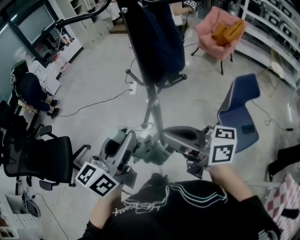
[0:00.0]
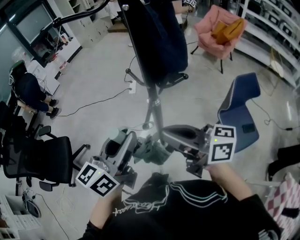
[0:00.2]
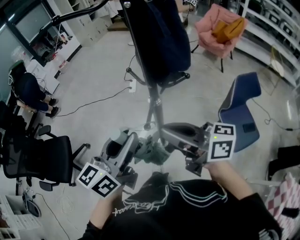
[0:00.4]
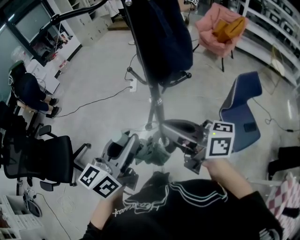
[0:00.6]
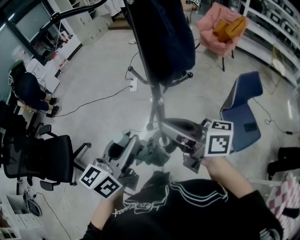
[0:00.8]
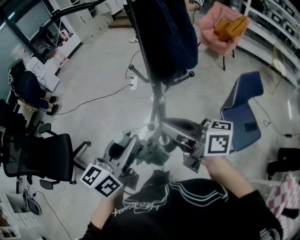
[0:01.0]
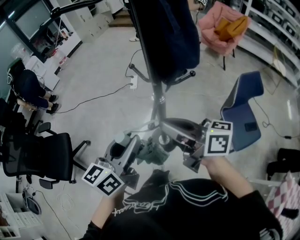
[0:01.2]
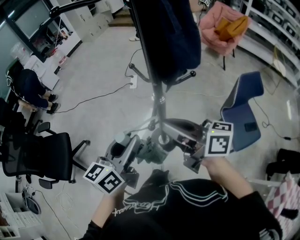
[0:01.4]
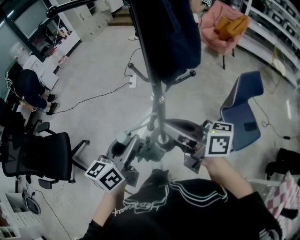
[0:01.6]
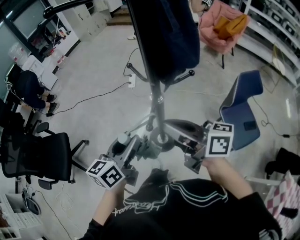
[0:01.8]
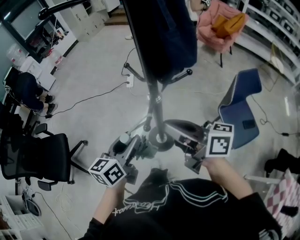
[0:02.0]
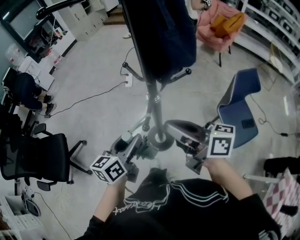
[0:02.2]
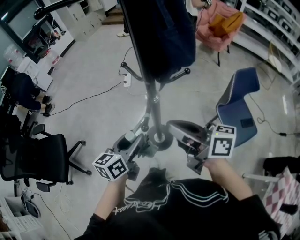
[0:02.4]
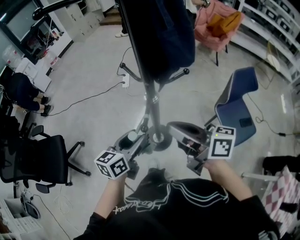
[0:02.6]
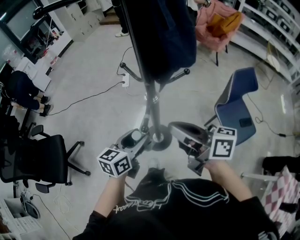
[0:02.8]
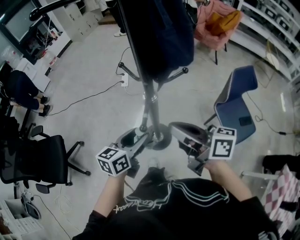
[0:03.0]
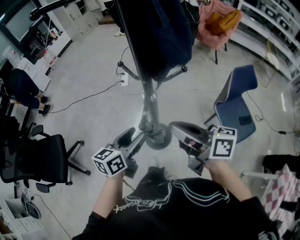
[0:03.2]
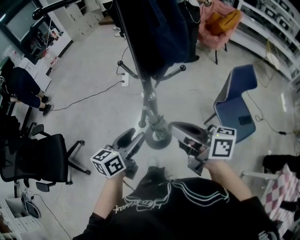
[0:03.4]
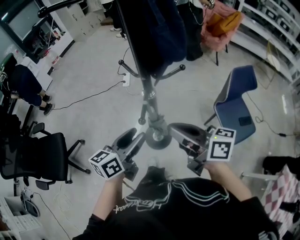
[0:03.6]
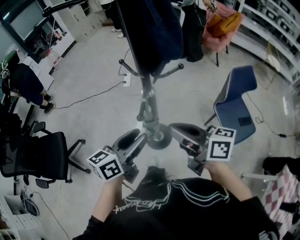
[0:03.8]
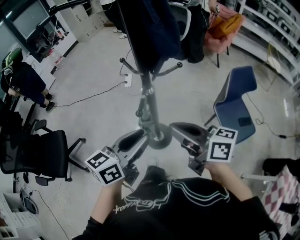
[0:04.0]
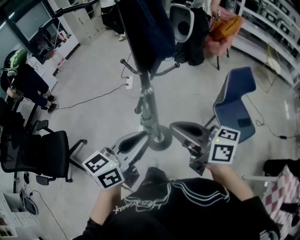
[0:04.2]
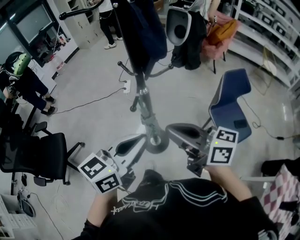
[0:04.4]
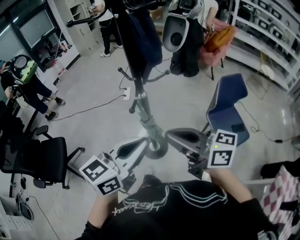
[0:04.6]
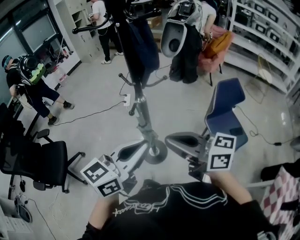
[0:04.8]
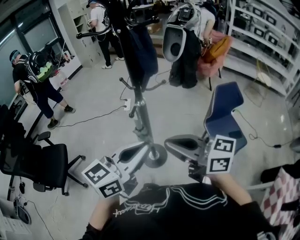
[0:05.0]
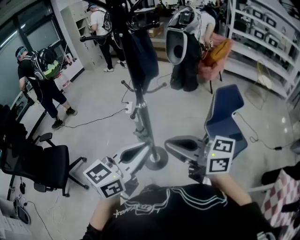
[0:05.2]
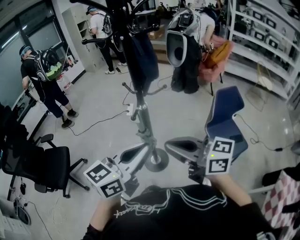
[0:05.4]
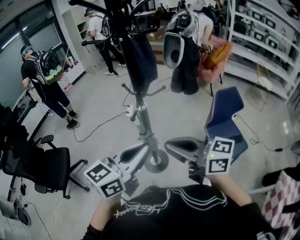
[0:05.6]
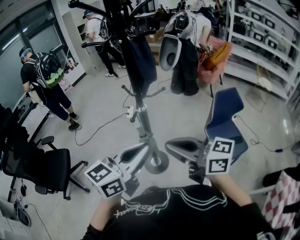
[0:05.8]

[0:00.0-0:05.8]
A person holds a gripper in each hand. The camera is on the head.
0:00.0 to 0:01.4: The right gripper moves roughly 5 cm. Meanwhile the left gripper goes roughly 10 cm downward.
0:01.4 to 0:02.8: The left gripper travels downward by roughly 10 cm.
0:02.8 to 0:04.4: The left gripper is displaced upward and backward by approximately 20 cm, and closes its fingers. The right gripper shifts approximately 10 cm backward and upward.
0:04.4 to 0:05.8: The left gripper moves backward and upward, about 10 cm. Meanwhile the right gripper goes roughly 10 cm backward.

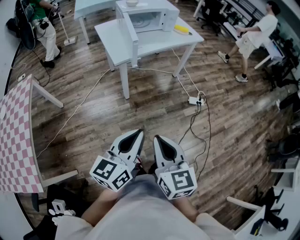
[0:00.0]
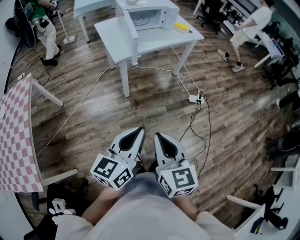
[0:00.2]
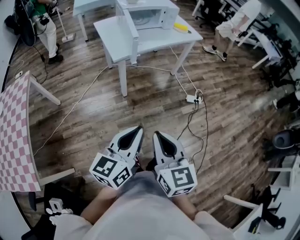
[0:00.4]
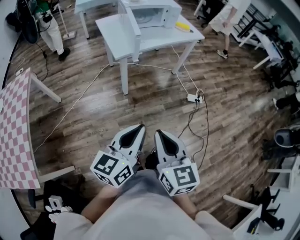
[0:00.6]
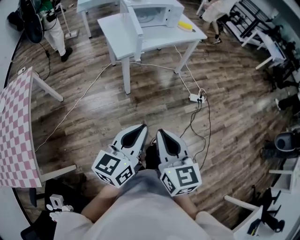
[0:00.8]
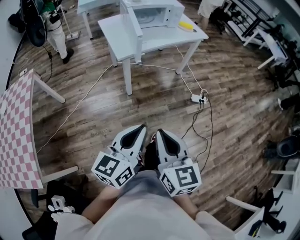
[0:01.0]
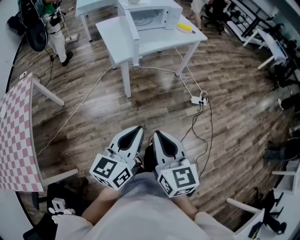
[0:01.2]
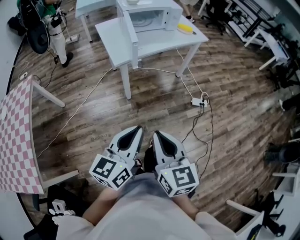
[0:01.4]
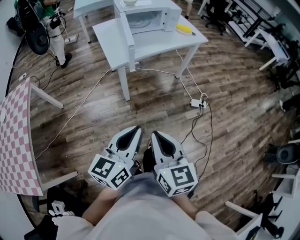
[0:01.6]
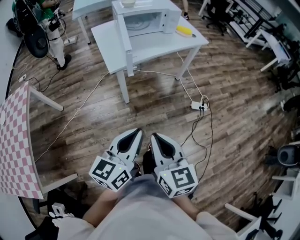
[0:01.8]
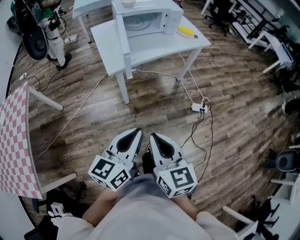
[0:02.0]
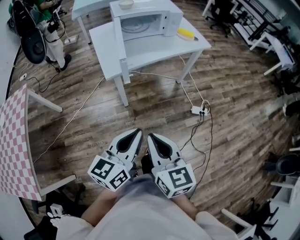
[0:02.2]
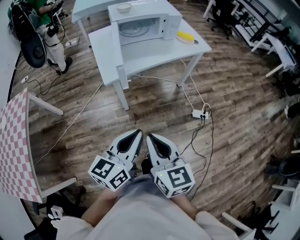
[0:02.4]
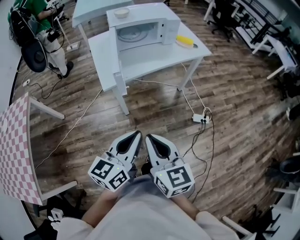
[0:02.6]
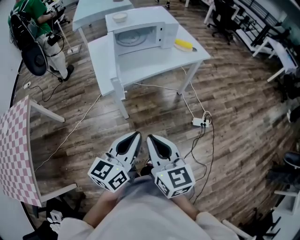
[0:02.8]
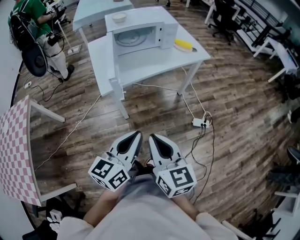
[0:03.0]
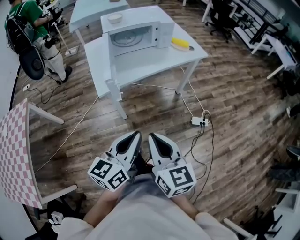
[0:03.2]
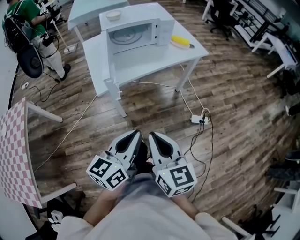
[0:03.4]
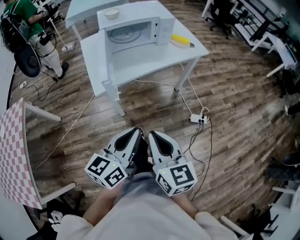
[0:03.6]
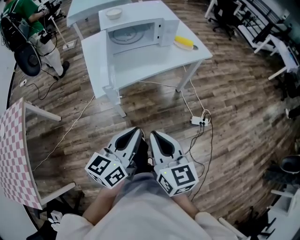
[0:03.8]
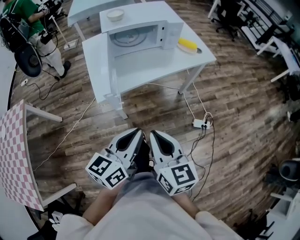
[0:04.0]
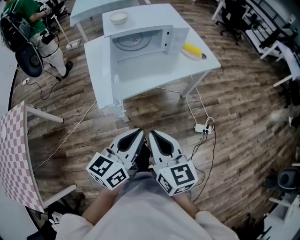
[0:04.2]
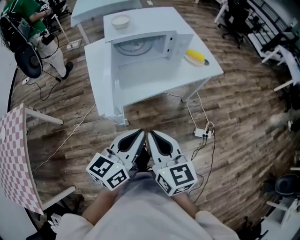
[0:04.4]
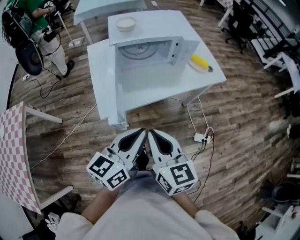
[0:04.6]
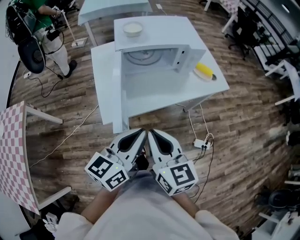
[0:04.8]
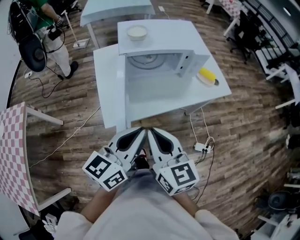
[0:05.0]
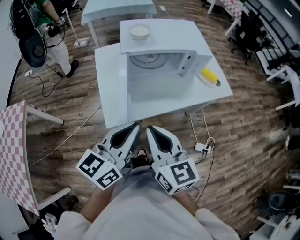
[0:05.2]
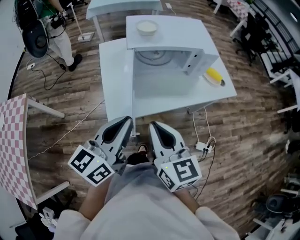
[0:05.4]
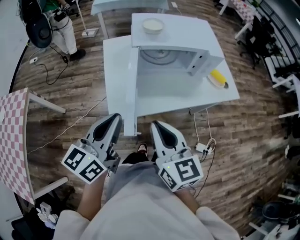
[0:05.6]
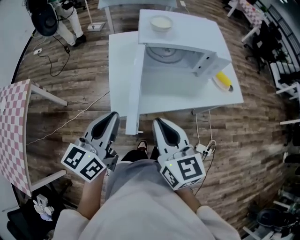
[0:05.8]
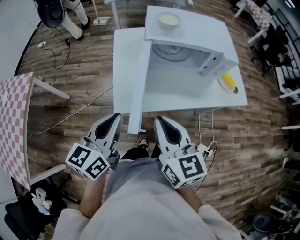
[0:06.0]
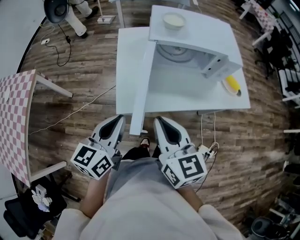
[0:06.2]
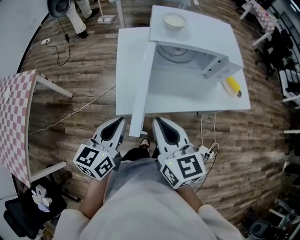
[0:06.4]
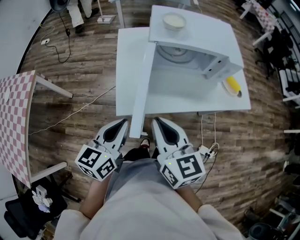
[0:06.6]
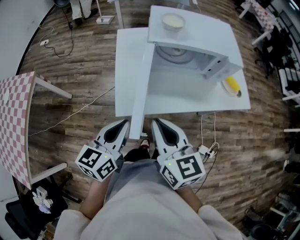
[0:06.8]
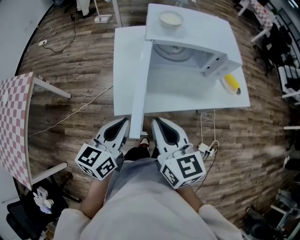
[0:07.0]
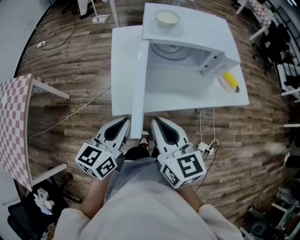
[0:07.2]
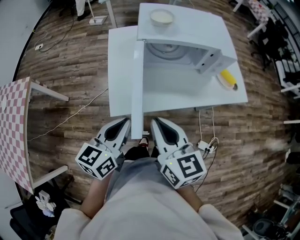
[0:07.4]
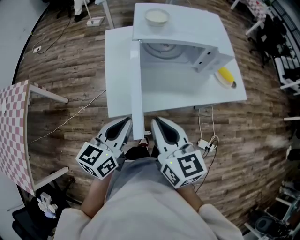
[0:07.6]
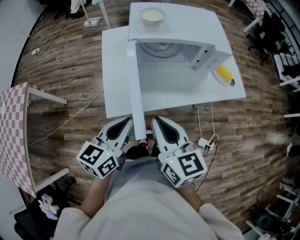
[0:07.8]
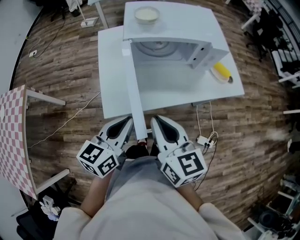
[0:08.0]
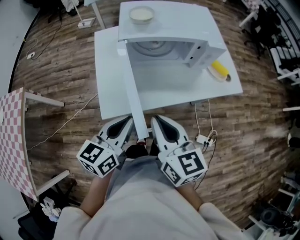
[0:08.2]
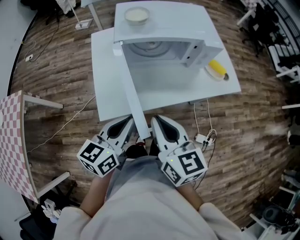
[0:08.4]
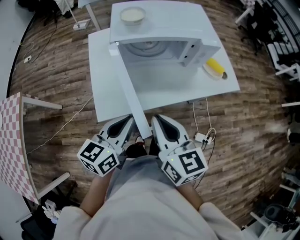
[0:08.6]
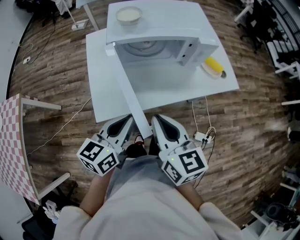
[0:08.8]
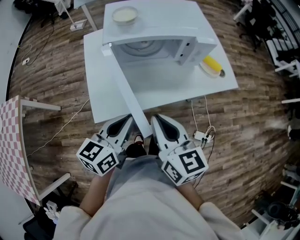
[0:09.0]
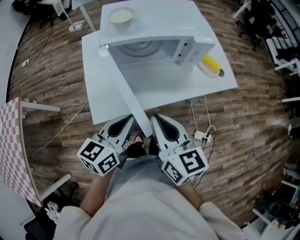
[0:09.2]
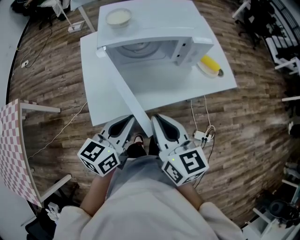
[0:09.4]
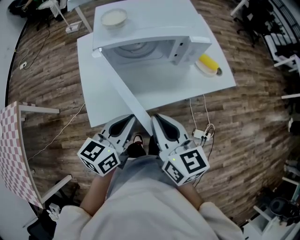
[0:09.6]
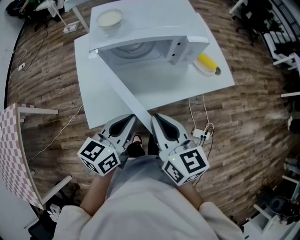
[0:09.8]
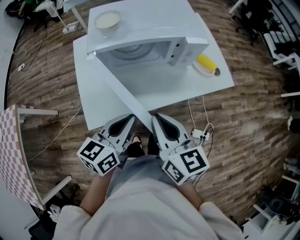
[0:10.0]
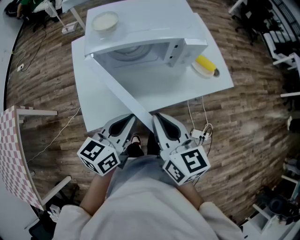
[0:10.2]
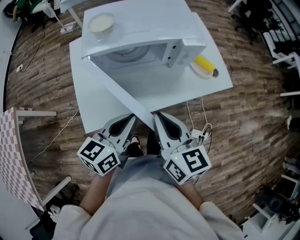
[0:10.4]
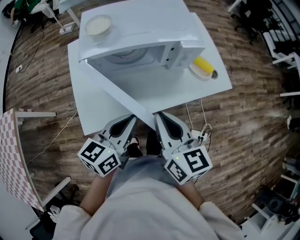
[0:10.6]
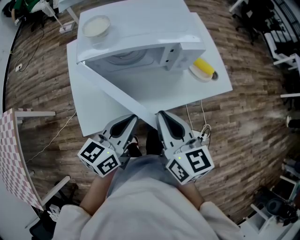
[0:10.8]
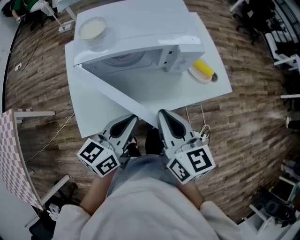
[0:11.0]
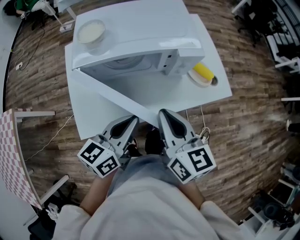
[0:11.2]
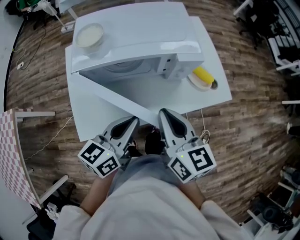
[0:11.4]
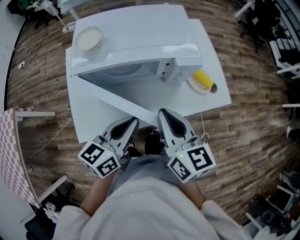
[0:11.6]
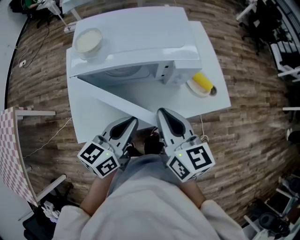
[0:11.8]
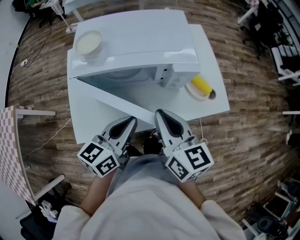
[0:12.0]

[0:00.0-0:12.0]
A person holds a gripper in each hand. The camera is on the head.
0:00.0 to 0:01.6: The grippers both shift forward by roughly 10 cm.
0:01.6 to 0:03.0: Both grippers travel together forward and to the right, some 20 cm.
0:03.0 to 0:04.4: The grippers both shift forward by approximately 20 cm.
0:04.4 to 0:06.0: The right gripper heads forward and to the left, covering roughly 15 cm, while the left gripper moves to the left and forward, about 20 cm, and swivels roughly 20 degrees.
0:06.0 to 0:07.6: The left gripper goes approximately 5 cm to the right.
0:07.6 to 0:09.0: Both grippers travel together to the right, roughly 5 cm.
0:09.0 to 0:10.4: The left gripper goes roughly 10 cm to the right and forward; the right gripper is displaced forward and to the right by some 10 cm.
0:10.4 to 0:12.0: The left gripper moves forward, roughly 10 cm. The right gripper moves forward and to the right, roughly 10 cm.

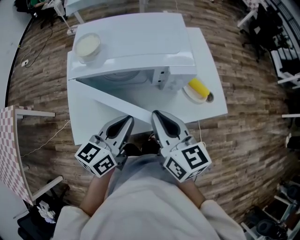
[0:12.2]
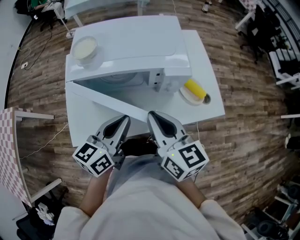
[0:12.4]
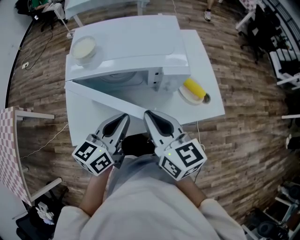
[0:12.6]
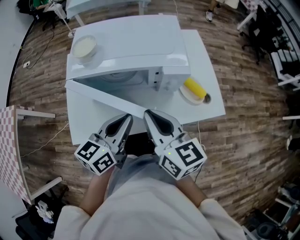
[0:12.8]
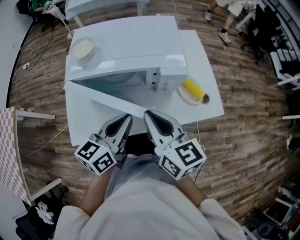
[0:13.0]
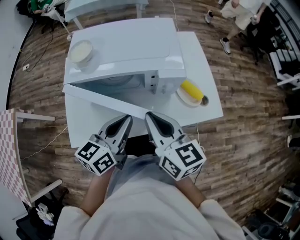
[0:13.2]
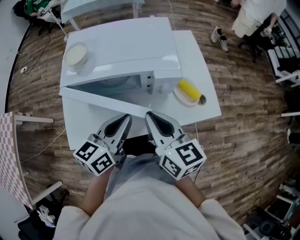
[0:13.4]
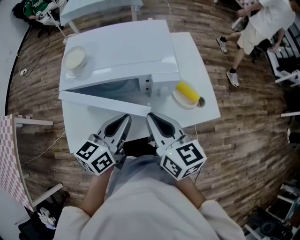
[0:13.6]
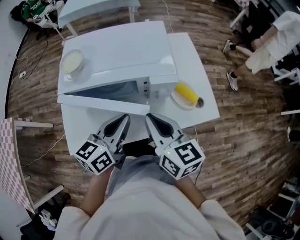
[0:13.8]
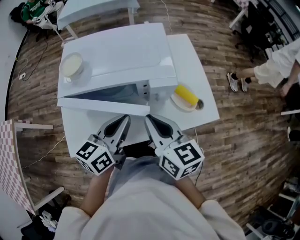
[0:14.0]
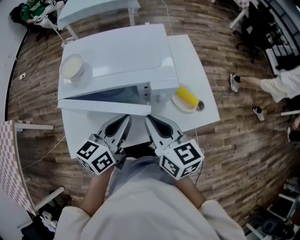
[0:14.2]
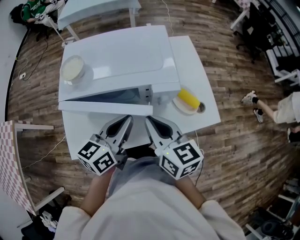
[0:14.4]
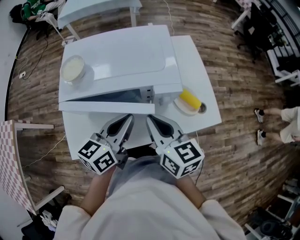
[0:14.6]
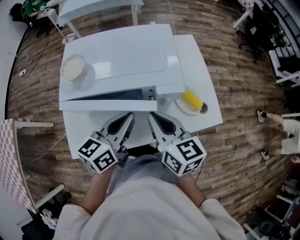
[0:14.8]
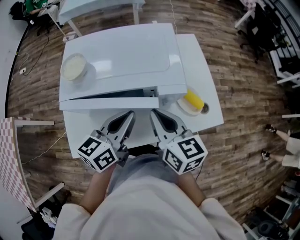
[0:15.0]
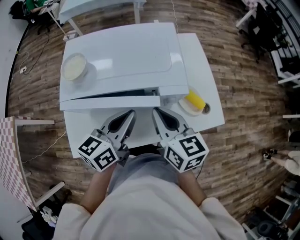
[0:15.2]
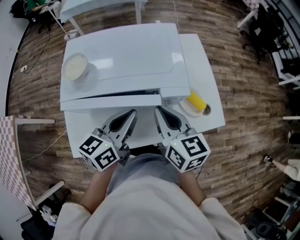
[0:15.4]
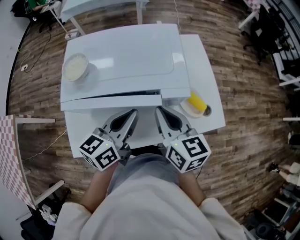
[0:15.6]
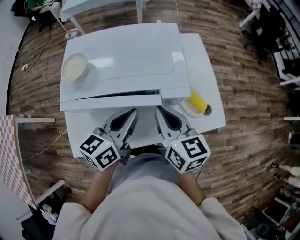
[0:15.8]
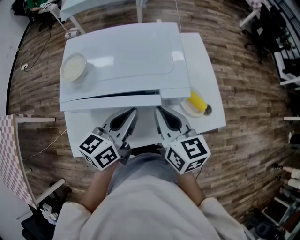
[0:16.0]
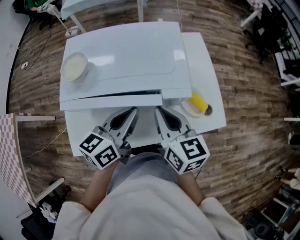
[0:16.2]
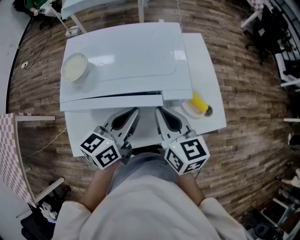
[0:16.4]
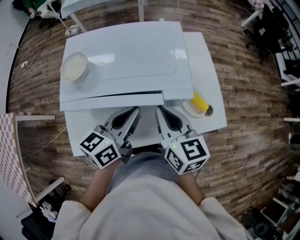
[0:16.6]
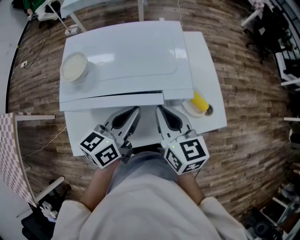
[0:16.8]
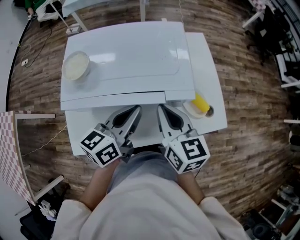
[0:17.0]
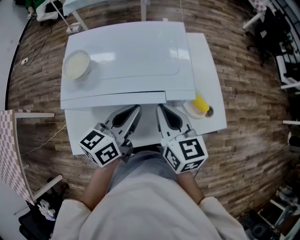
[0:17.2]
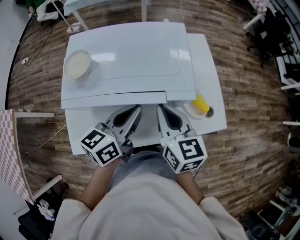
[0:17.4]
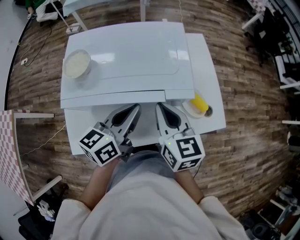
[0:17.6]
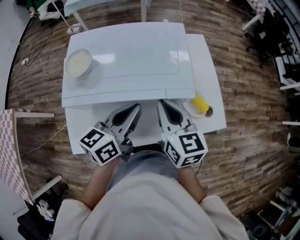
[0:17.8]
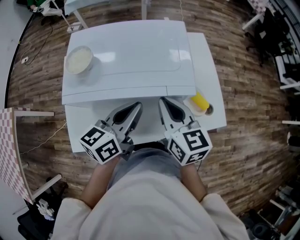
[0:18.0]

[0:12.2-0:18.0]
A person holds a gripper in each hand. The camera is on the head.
0:12.2 to 0:13.6: The grippers make only small movements.
0:13.6 to 0:15.0: The grippers both shift forward by approximately 5 cm.
0:15.0 to 0:18.0: The grippers make only small movements.
